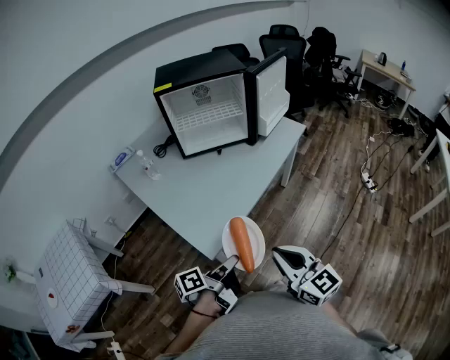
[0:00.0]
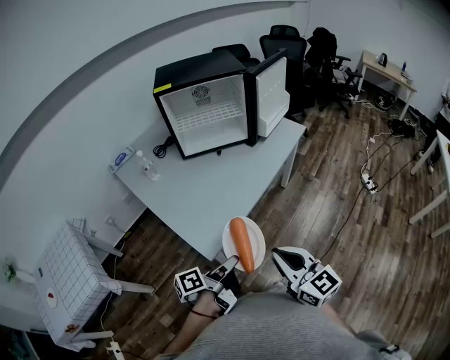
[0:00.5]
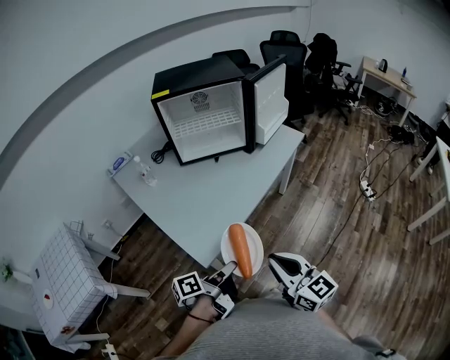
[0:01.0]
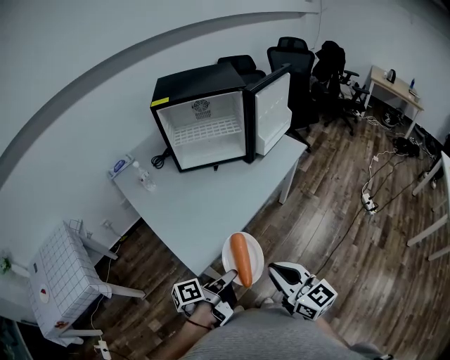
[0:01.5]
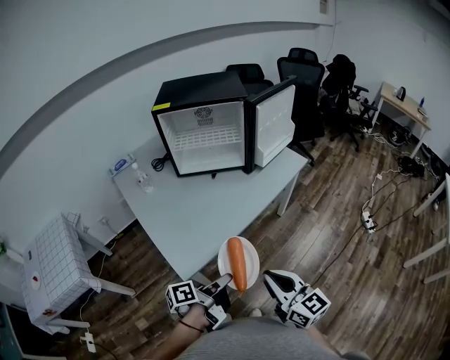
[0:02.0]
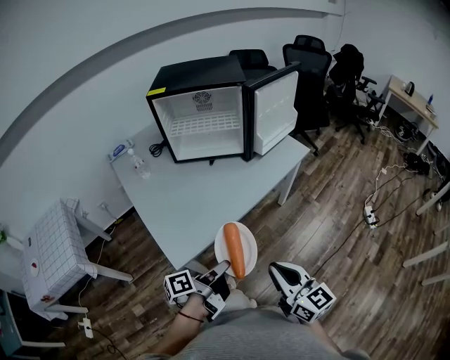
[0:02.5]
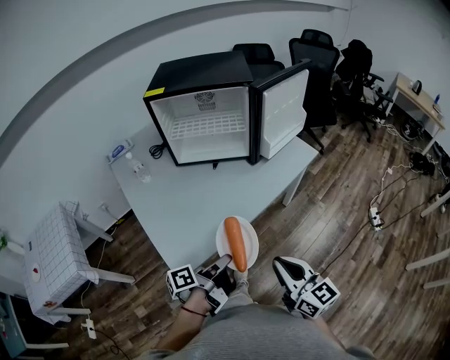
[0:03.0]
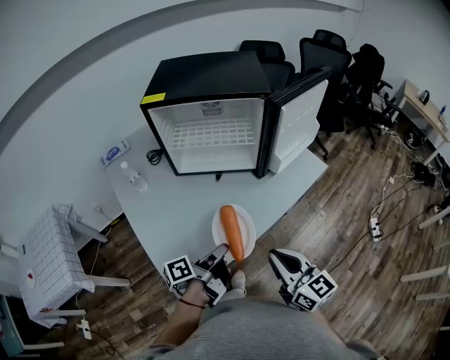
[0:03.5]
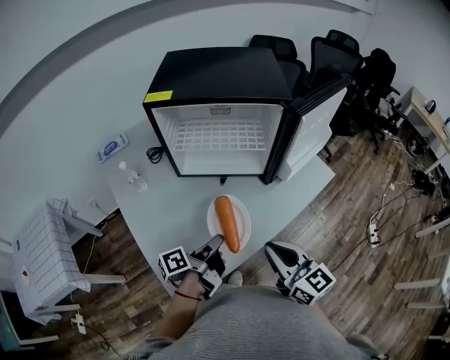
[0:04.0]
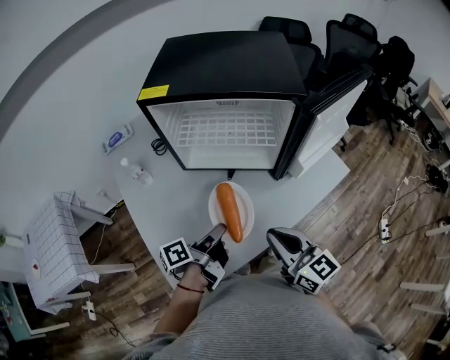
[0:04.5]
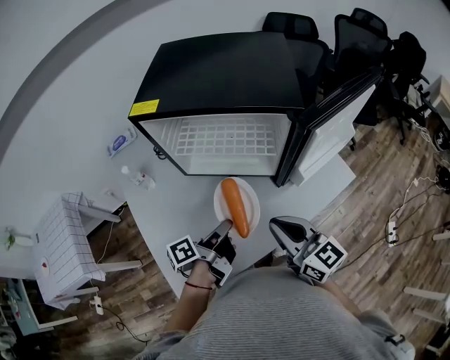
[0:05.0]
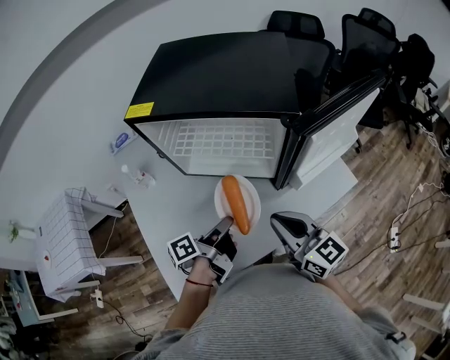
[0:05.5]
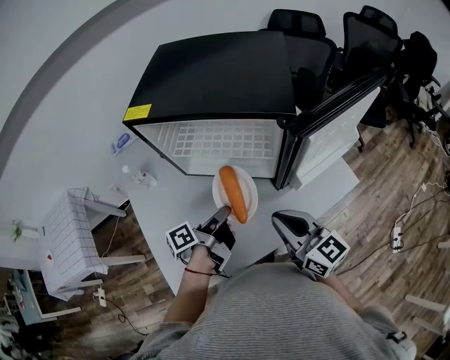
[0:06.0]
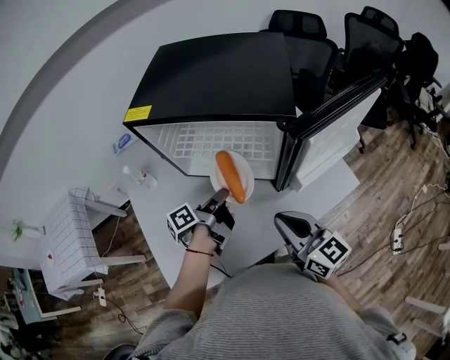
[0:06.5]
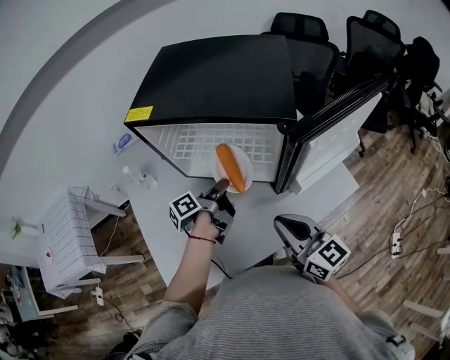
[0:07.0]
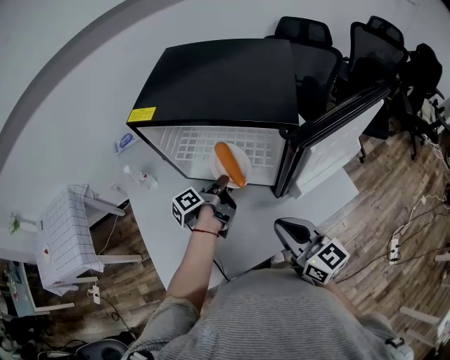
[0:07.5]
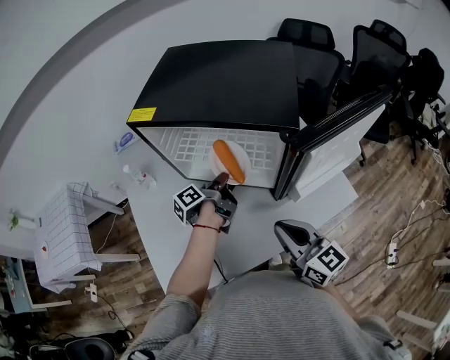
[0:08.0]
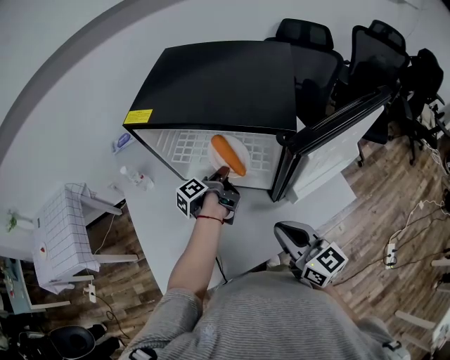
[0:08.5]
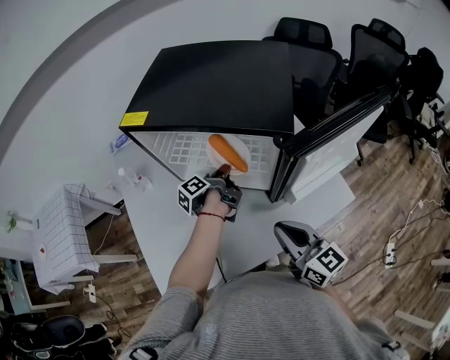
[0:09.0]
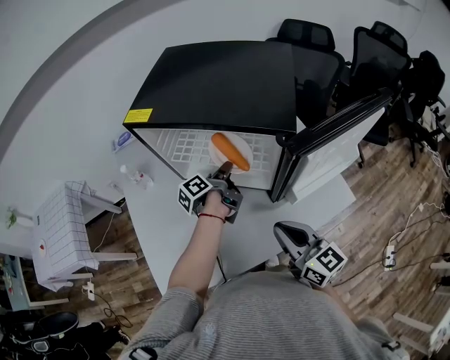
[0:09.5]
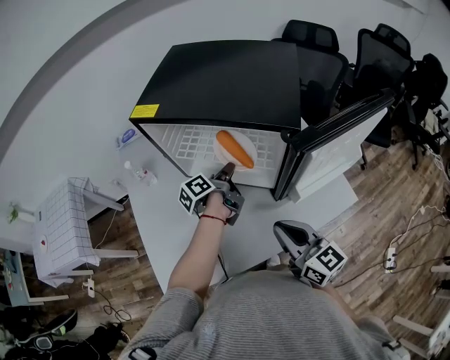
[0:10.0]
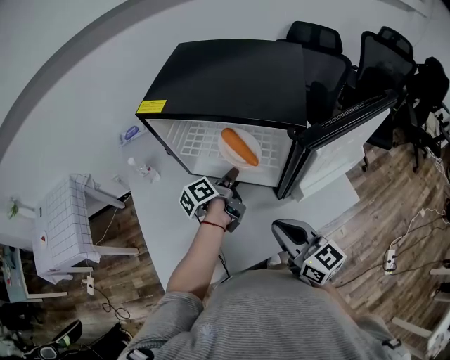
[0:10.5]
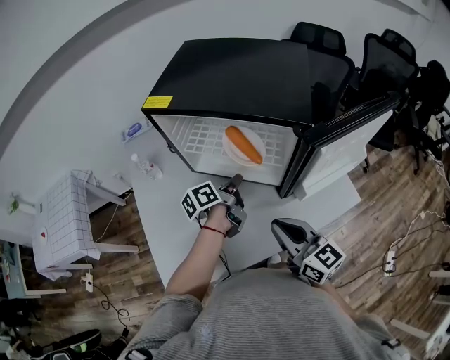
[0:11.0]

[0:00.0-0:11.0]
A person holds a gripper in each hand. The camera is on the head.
0:00.0 to 0:02.0: The right gripper changes place by some 10 cm.
0:02.0 to 0:03.5: The right gripper shifts by approximately 20 cm.
0:03.5 to 0:05.5: The right gripper changes place by about 25 cm.

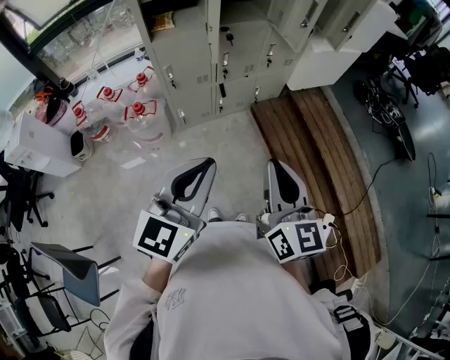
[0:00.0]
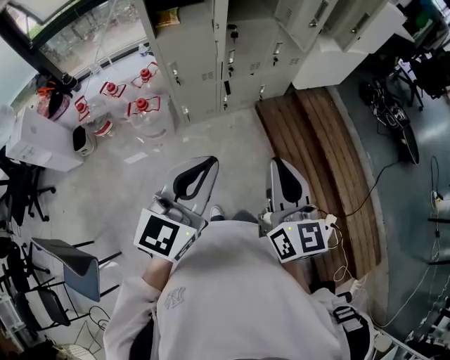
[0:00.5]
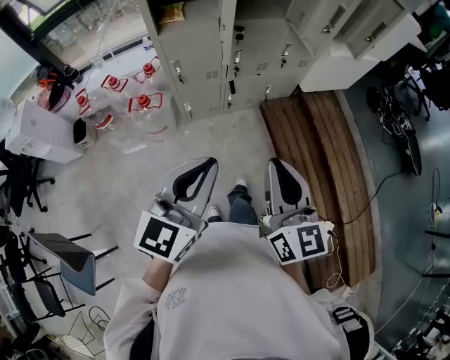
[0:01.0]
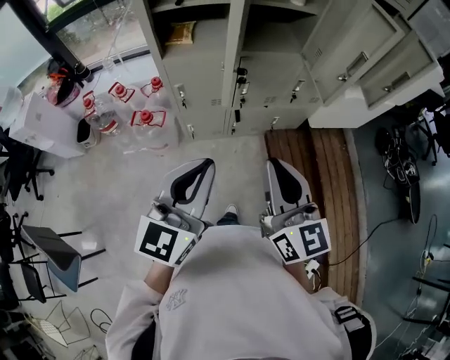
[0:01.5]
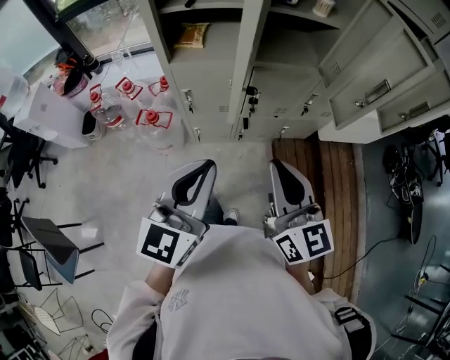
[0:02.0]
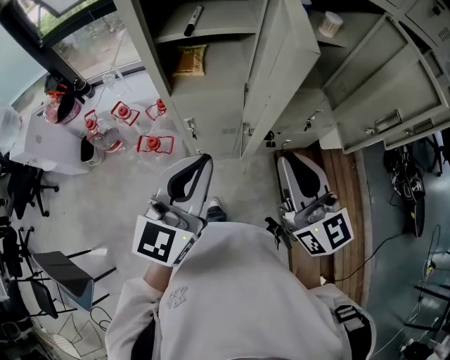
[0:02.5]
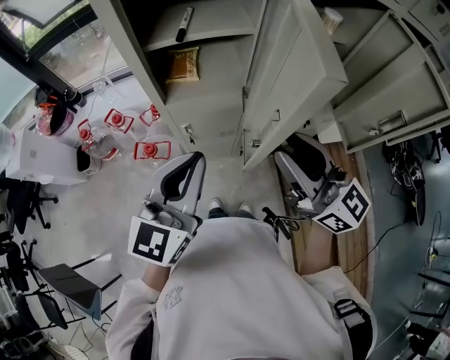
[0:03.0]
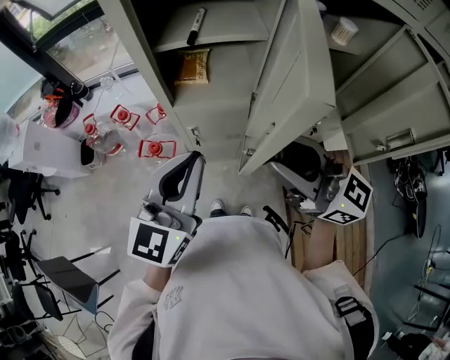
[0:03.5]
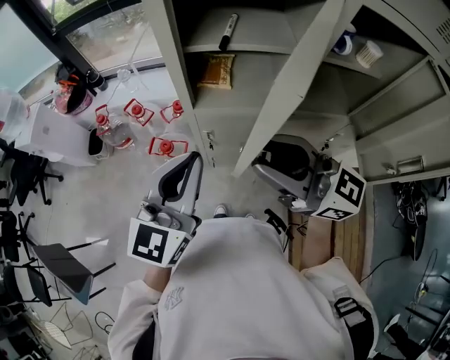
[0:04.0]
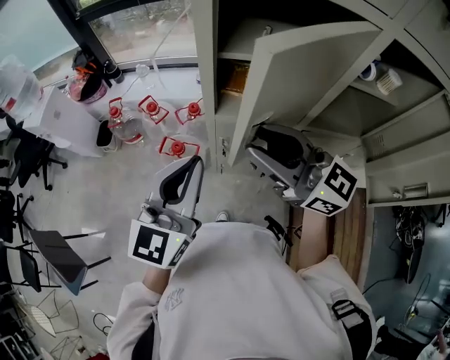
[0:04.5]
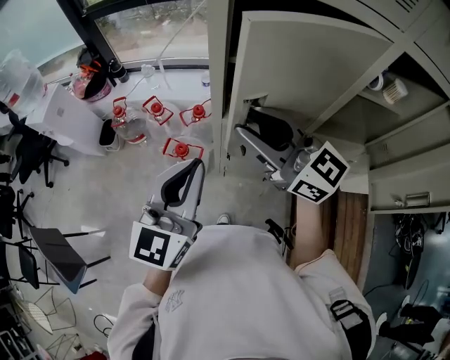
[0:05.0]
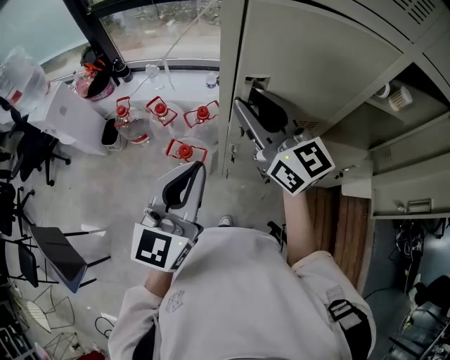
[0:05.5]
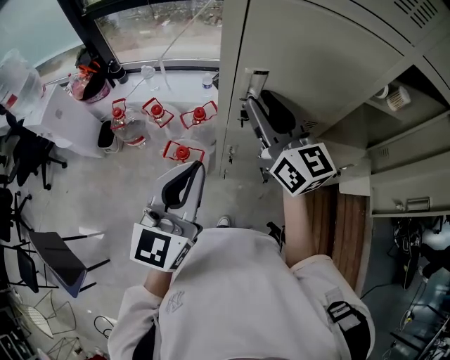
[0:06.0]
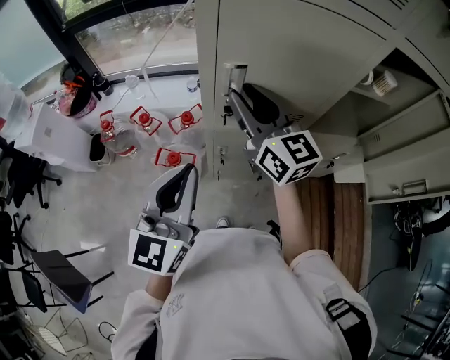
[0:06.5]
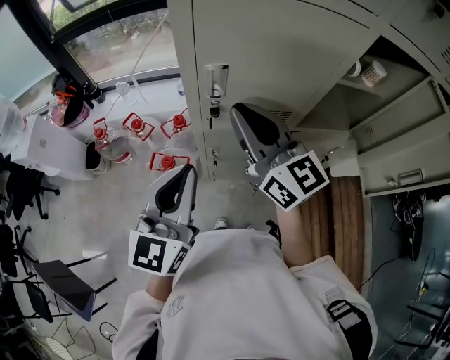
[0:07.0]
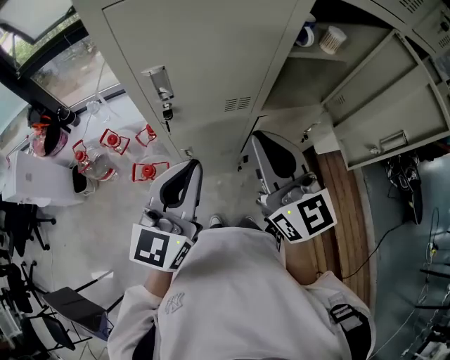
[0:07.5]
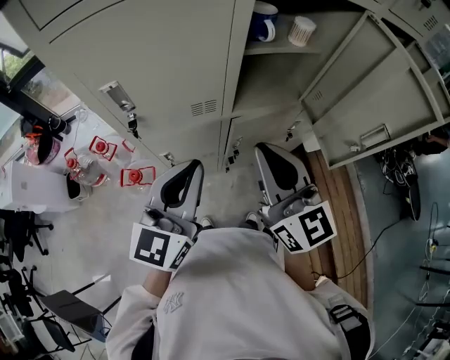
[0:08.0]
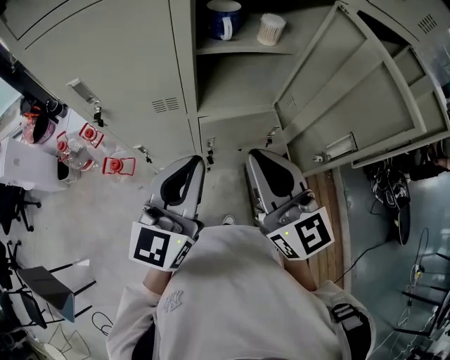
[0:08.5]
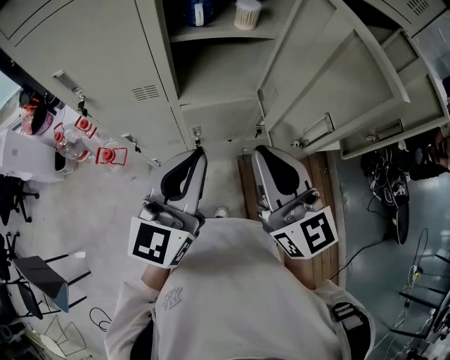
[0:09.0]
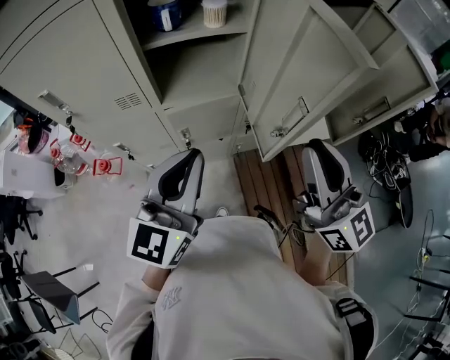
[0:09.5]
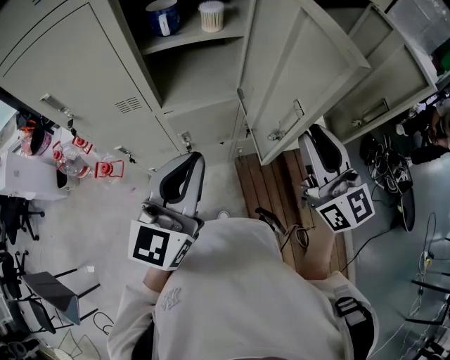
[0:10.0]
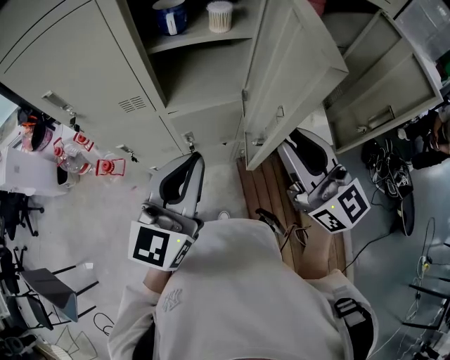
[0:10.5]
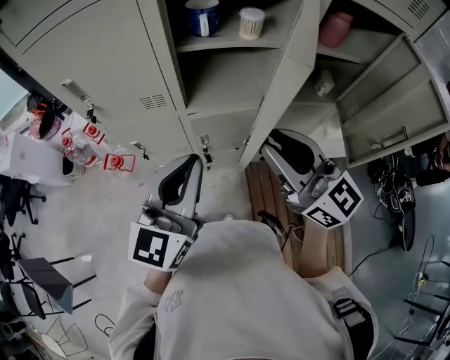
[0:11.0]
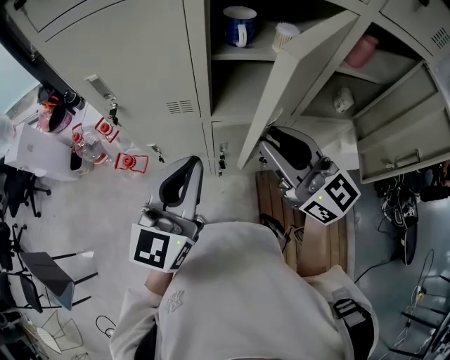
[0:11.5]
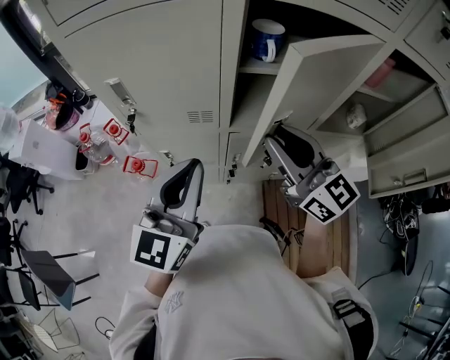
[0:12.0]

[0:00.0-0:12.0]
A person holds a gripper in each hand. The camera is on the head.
0:00.0 to 0:02.0: Both grippers move forward, roughly 25 cm. The right gripper changes its angle by some 20 degrees. Meanwhile the left gripper turns by approximately 20 degrees.
0:02.0 to 0:04.0: The left gripper changes place by roughly 20 cm, while the right gripper shifts by about 25 cm, turns by some 50 degrees, and opens.
0:04.0 to 0:06.0: The left gripper goes some 10 cm to the left, while the right gripper moves forward, roughly 20 cm, and rotates approximately 30 degrees.
0:06.0 to 0:08.0: The right gripper travels to the right and backward by some 25 cm, turns by some 20 degrees, and closes up; the left gripper travels to the right by approximately 20 cm, and swivels approximately 20 degrees.
0:08.0 to 0:10.0: The grippers both shift to the right by about 25 cm.
0:10.0 to 0:12.0: The grippers both shift to the left and forward by about 20 cm. The right gripper changes its angle by some 20 degrees.

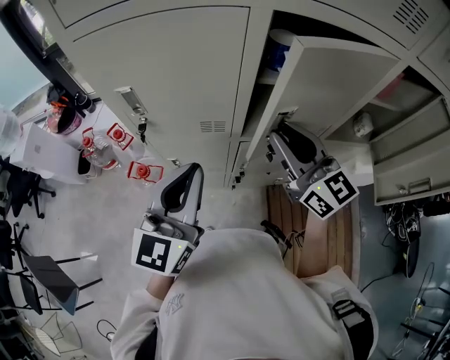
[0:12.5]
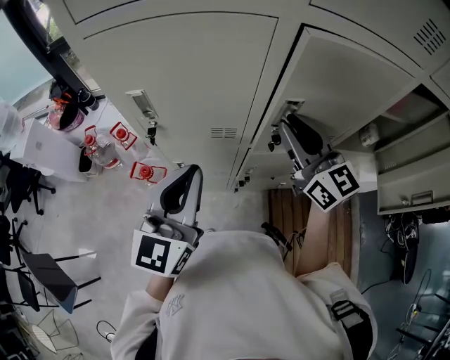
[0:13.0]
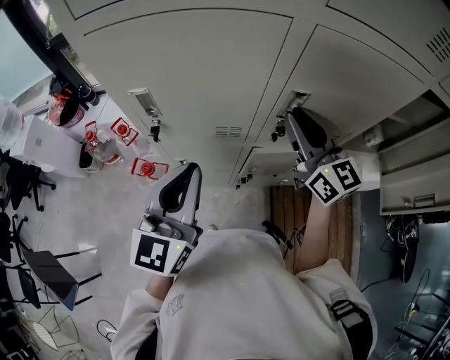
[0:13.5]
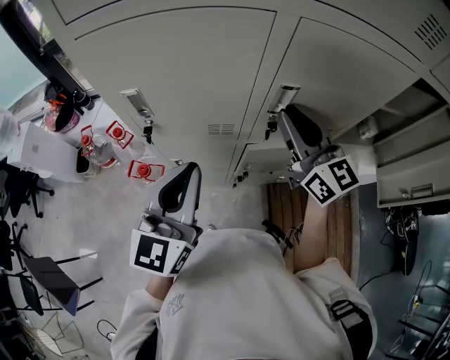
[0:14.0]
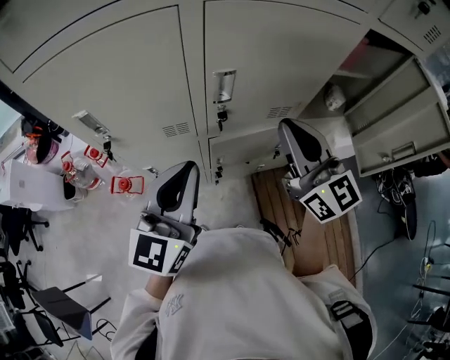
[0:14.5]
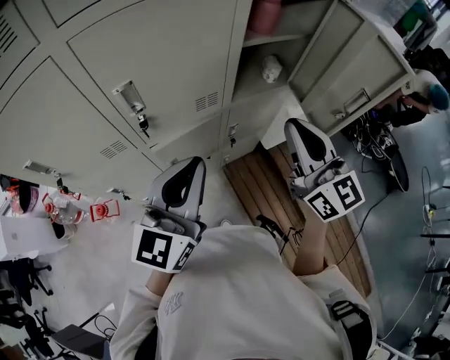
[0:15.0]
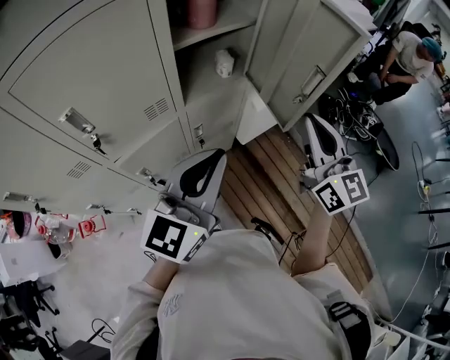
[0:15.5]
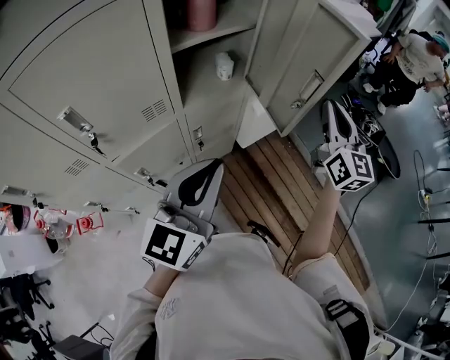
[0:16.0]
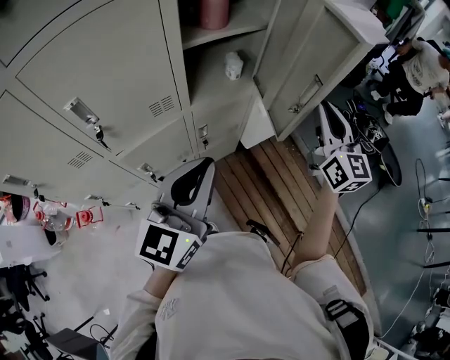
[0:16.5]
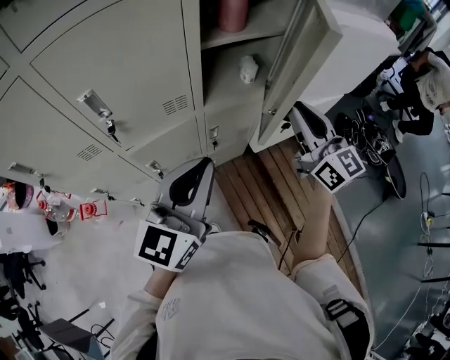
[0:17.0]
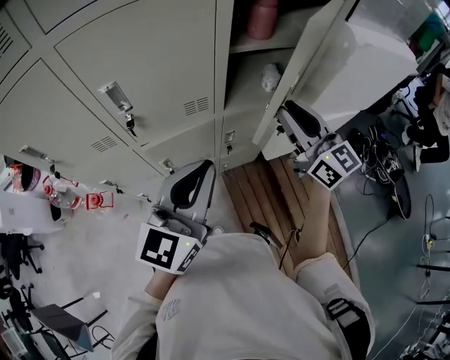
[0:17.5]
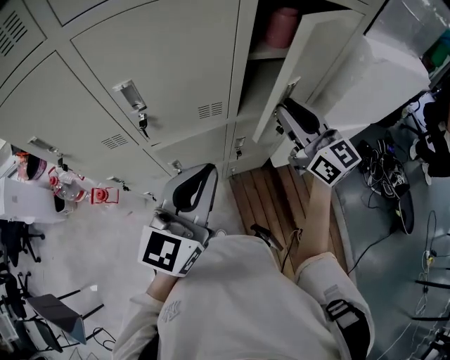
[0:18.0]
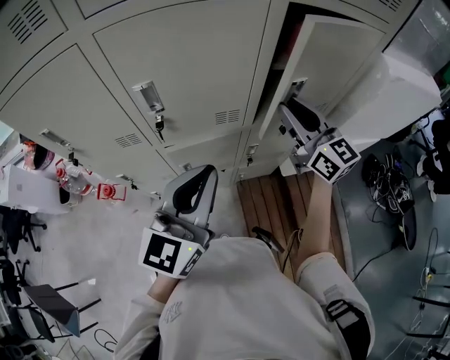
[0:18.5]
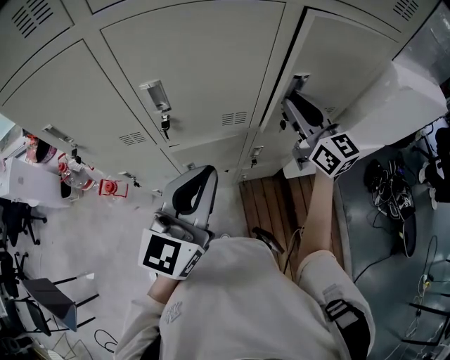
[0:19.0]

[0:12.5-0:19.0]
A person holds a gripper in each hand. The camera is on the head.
0:12.5 to 0:14.5: The two grippers go roughly 5 cm to the right. The right gripper reaches roughly 5 cm forward, then returns.
0:14.5 to 0:17.0: The left gripper moves about 25 cm. The right gripper ends up approximately 30 cm from where it was.
0:17.0 to 0:19.0: The right gripper heads forward and to the left, covering about 20 cm. Meanwhile the left gripper moves to the left, roughly 10 cm.
